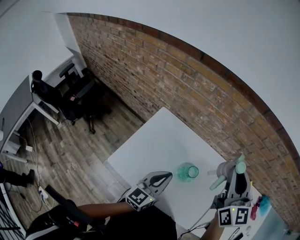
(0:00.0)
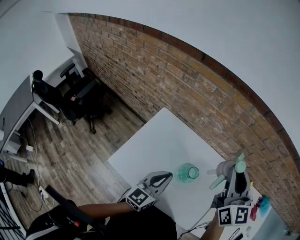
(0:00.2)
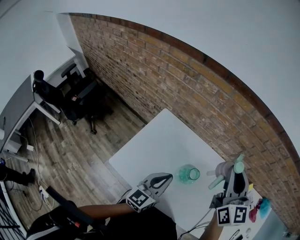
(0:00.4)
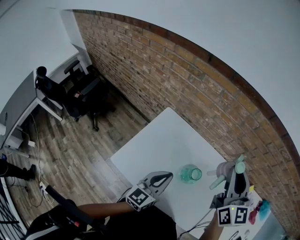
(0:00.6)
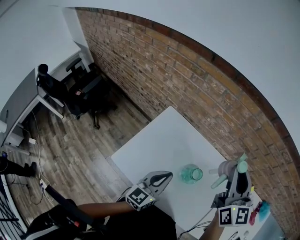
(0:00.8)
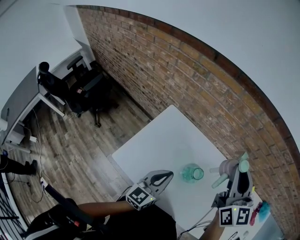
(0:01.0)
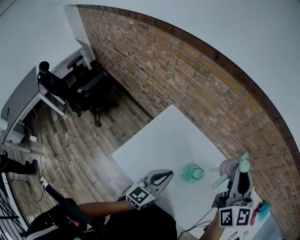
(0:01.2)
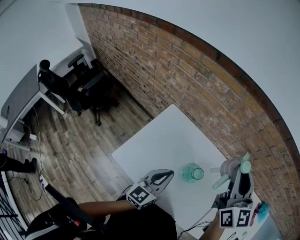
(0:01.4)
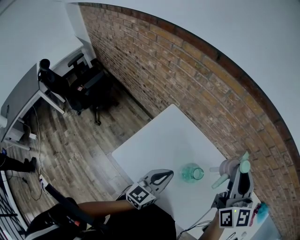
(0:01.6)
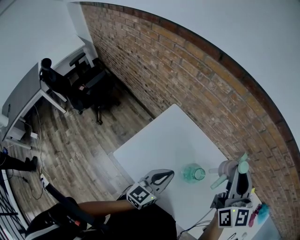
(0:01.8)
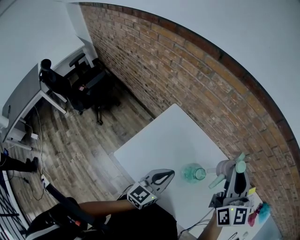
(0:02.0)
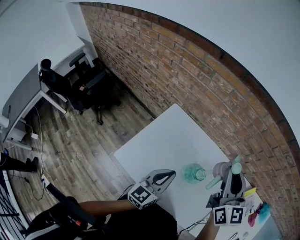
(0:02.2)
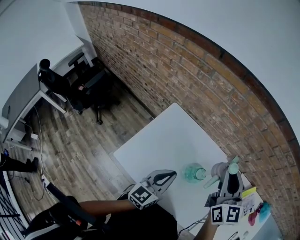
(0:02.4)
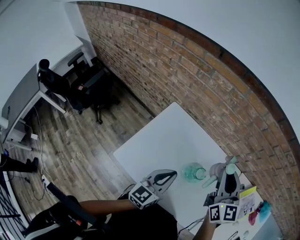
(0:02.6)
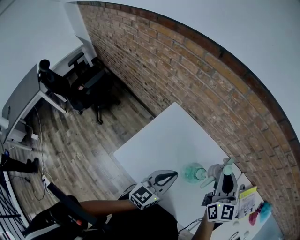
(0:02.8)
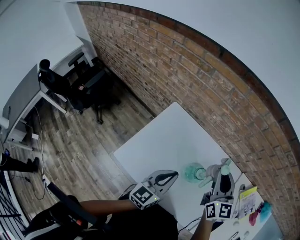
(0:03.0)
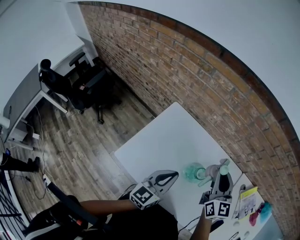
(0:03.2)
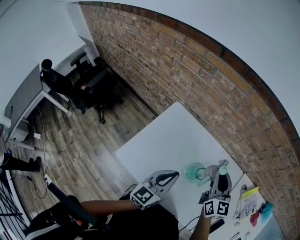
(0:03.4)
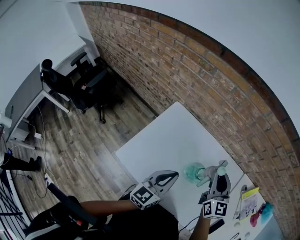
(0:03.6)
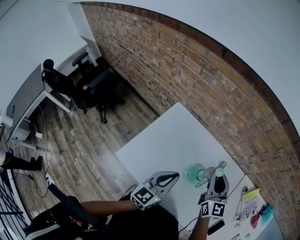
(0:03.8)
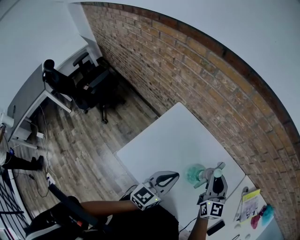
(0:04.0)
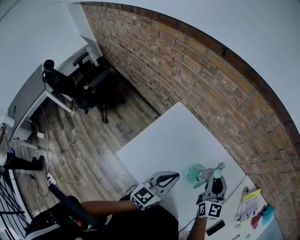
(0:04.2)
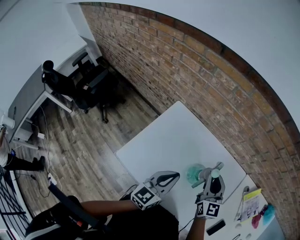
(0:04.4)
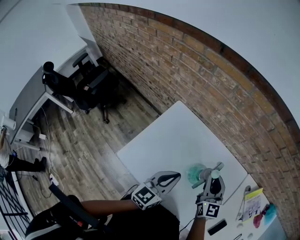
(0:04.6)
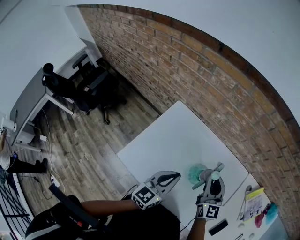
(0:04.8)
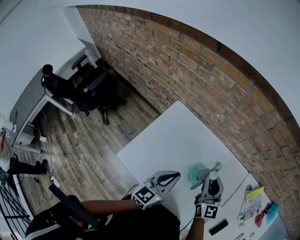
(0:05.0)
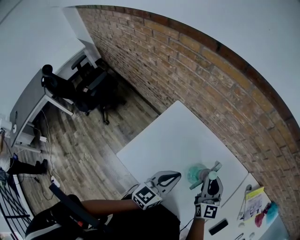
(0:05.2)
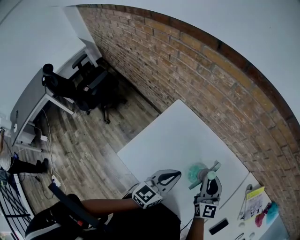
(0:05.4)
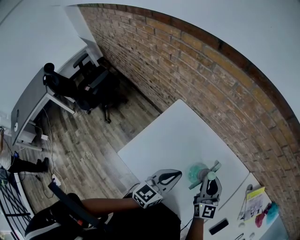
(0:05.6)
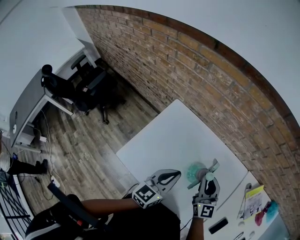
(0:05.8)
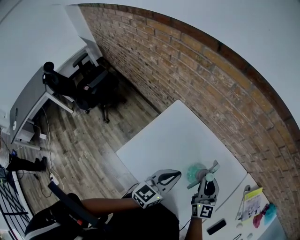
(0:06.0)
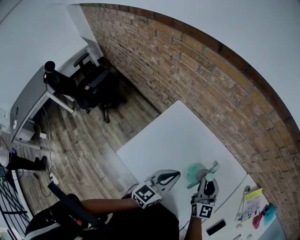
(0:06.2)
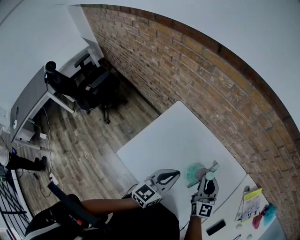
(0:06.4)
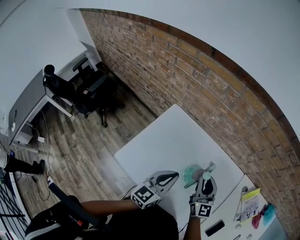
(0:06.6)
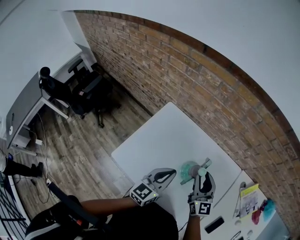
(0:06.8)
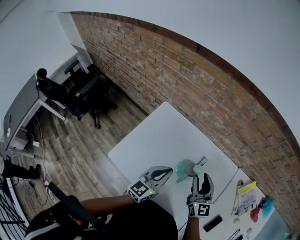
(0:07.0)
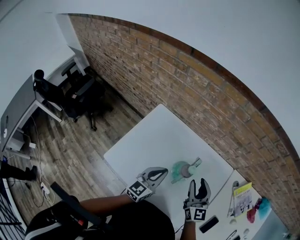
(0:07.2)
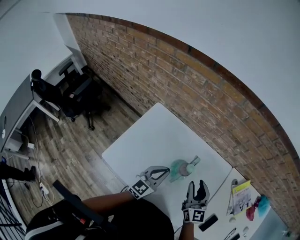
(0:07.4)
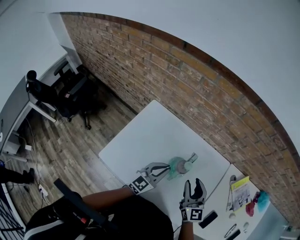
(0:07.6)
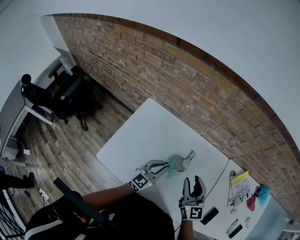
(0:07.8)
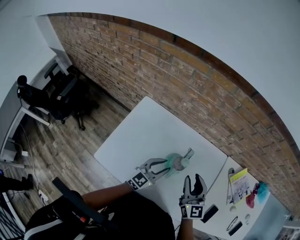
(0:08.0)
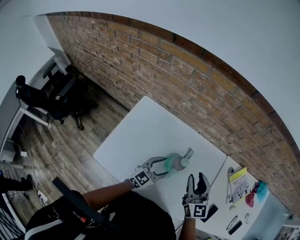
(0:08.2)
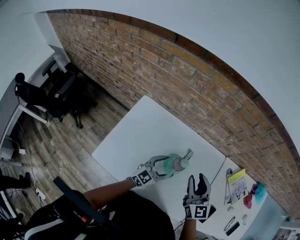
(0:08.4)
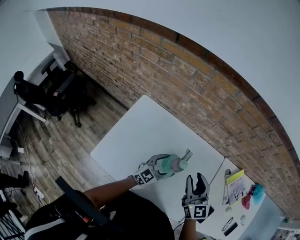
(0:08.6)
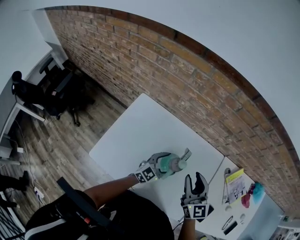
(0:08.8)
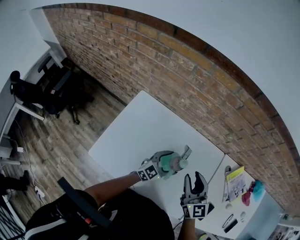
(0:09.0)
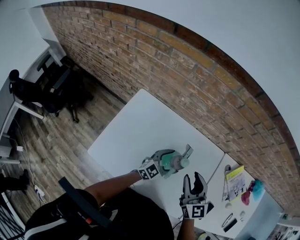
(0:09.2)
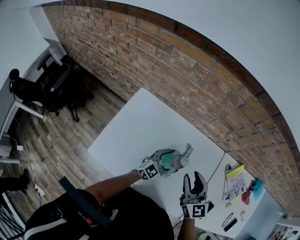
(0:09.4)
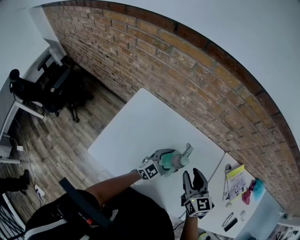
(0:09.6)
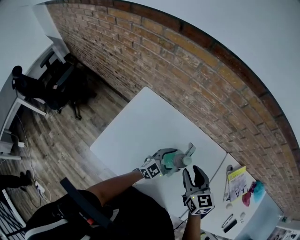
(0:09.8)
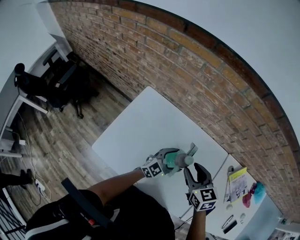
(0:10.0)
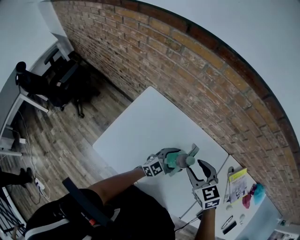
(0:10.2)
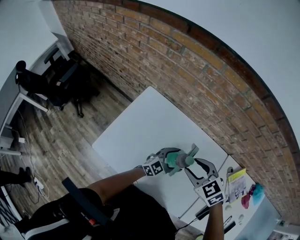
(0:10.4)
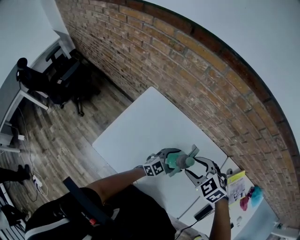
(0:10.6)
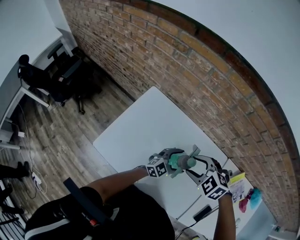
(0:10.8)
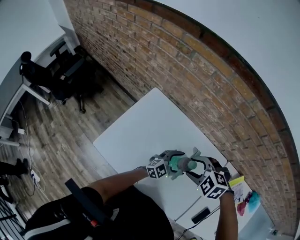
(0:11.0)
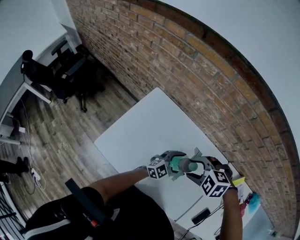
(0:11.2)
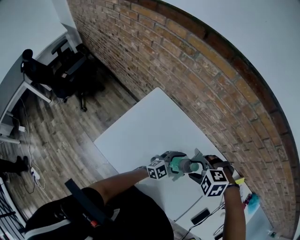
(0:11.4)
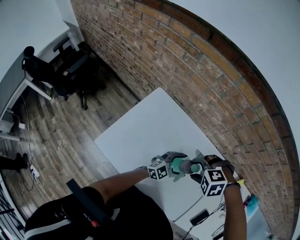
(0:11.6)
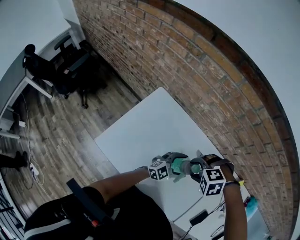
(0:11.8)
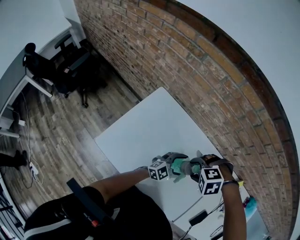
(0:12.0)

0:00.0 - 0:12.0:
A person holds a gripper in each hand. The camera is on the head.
0:00.0 - 0:01.6: There are only small adjustments of the grippers.
0:01.6 - 0:03.0: The right gripper travels downward by about 15 cm.
0:03.0 - 0:04.4: The right gripper shifts some 10 cm downward.
0:04.4 - 0:06.0: The grippers stay close to where they were, moving slightly.
0:06.0 - 0:07.6: The right gripper is displaced to the right by some 5 cm, while the left gripper shifts some 10 cm downward and to the right.
0:07.6 - 0:09.0: The left gripper heads downward and to the right, covering some 10 cm, and opens up.
0:09.0 - 0:10.4: The right gripper shifts by about 5 cm, and angles its fingers downward, by about 40 degrees.
0:10.4 - 0:12.0: The right gripper heads downward, covering approximately 5 cm, and points its fingers approximately 40 degrees further downward.

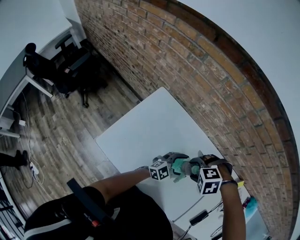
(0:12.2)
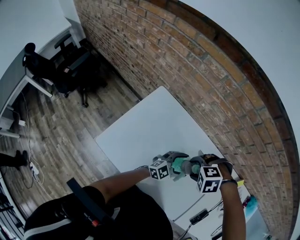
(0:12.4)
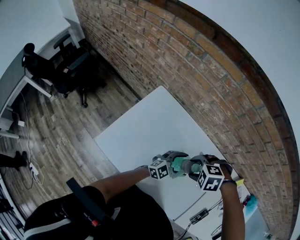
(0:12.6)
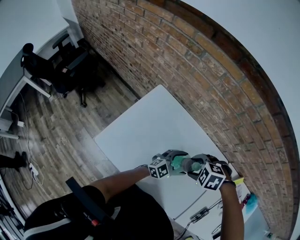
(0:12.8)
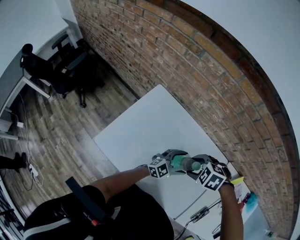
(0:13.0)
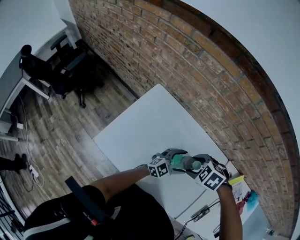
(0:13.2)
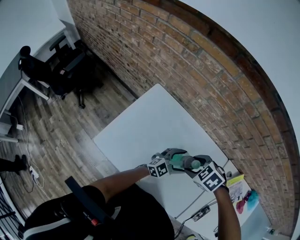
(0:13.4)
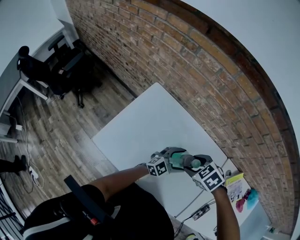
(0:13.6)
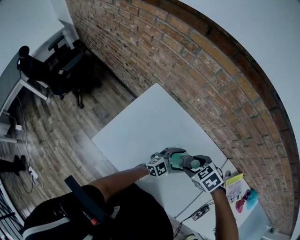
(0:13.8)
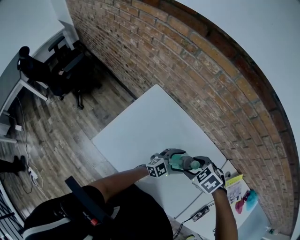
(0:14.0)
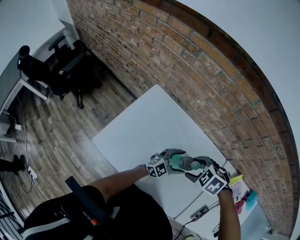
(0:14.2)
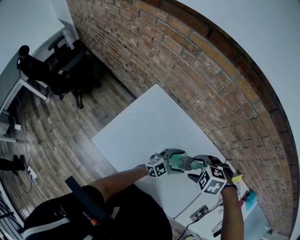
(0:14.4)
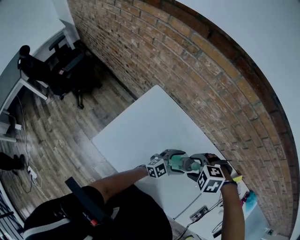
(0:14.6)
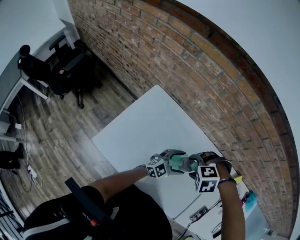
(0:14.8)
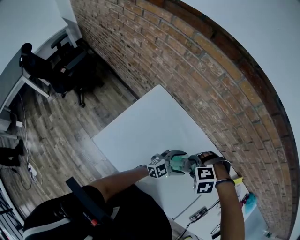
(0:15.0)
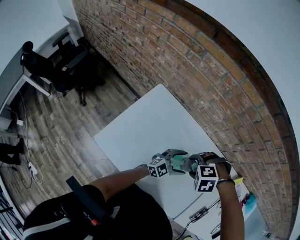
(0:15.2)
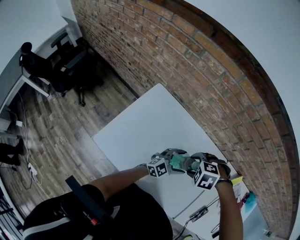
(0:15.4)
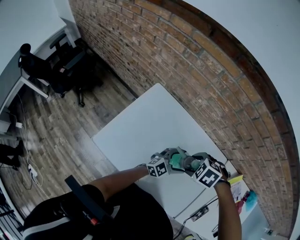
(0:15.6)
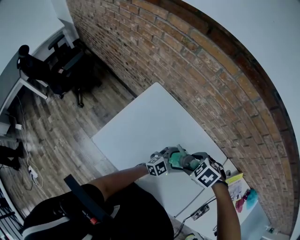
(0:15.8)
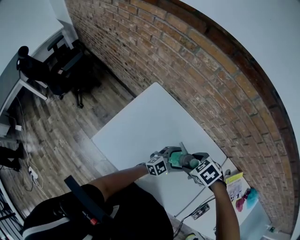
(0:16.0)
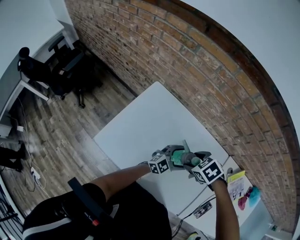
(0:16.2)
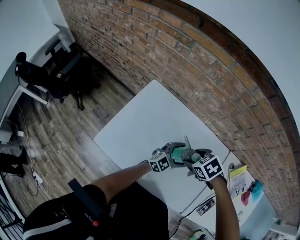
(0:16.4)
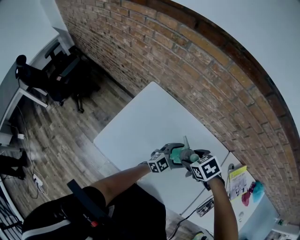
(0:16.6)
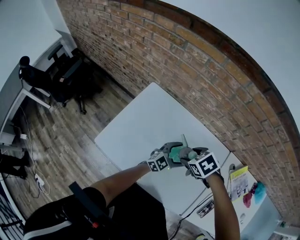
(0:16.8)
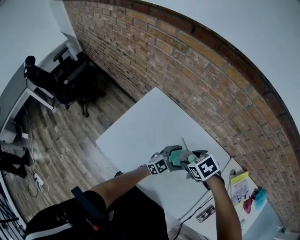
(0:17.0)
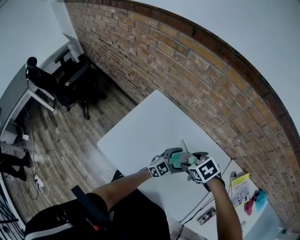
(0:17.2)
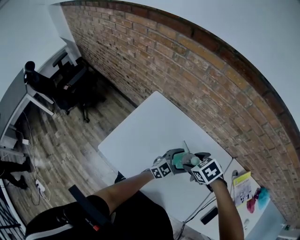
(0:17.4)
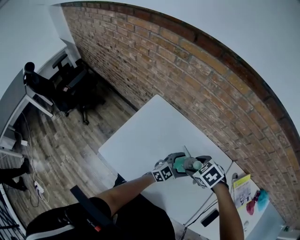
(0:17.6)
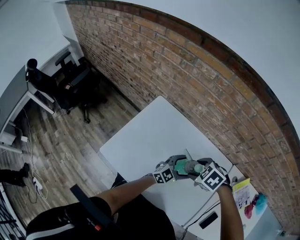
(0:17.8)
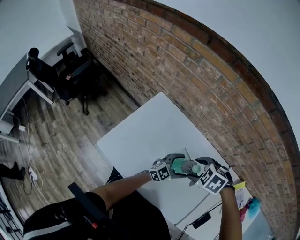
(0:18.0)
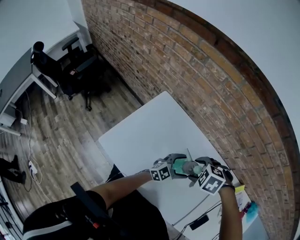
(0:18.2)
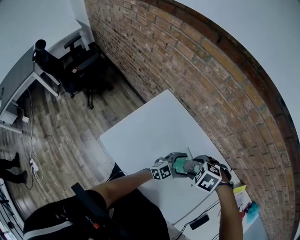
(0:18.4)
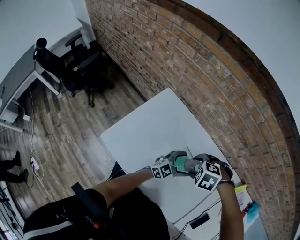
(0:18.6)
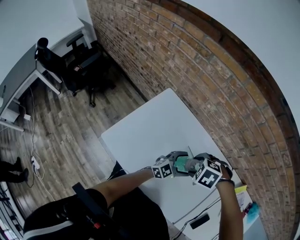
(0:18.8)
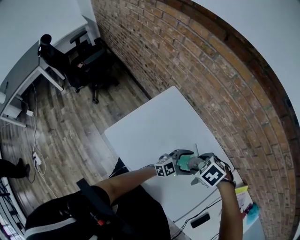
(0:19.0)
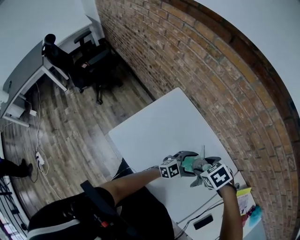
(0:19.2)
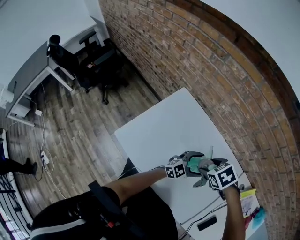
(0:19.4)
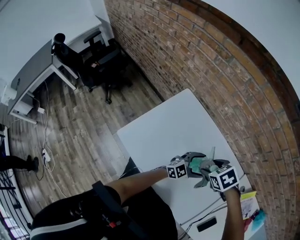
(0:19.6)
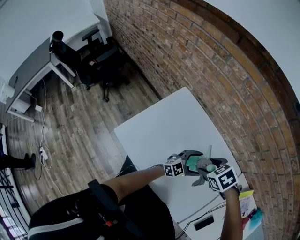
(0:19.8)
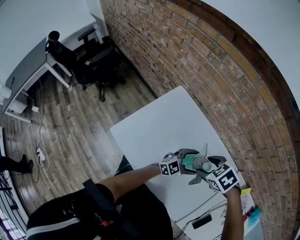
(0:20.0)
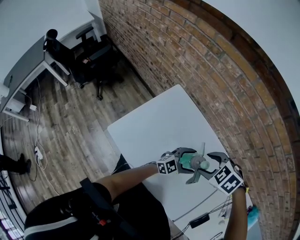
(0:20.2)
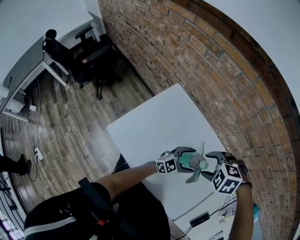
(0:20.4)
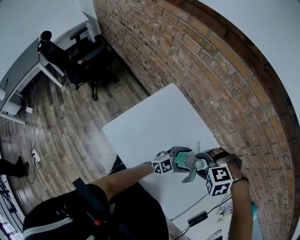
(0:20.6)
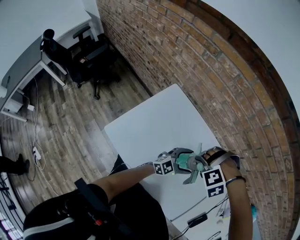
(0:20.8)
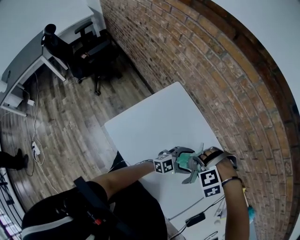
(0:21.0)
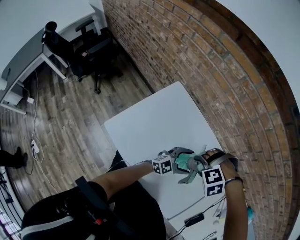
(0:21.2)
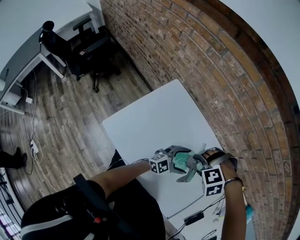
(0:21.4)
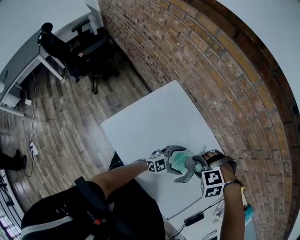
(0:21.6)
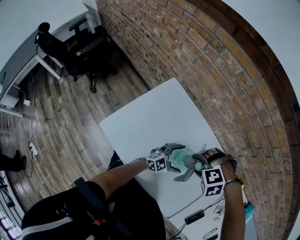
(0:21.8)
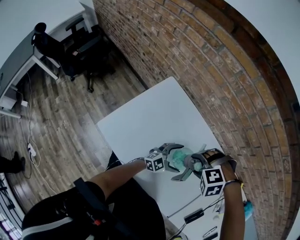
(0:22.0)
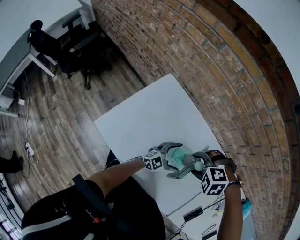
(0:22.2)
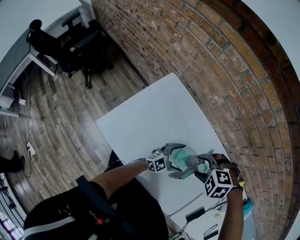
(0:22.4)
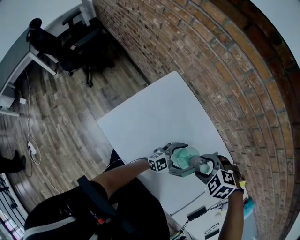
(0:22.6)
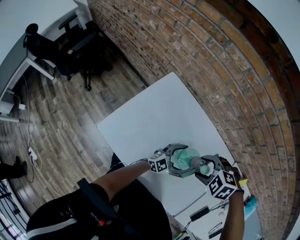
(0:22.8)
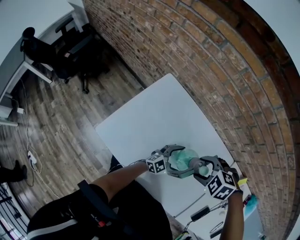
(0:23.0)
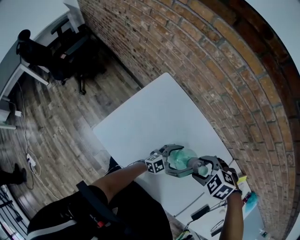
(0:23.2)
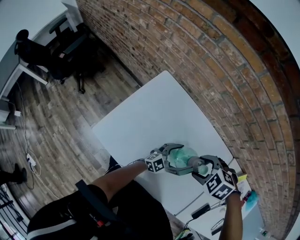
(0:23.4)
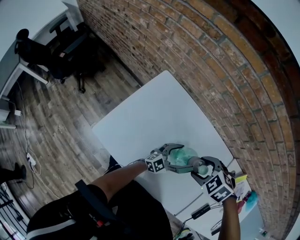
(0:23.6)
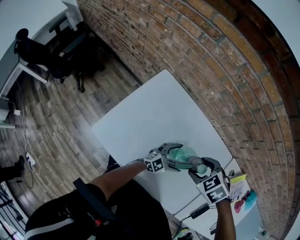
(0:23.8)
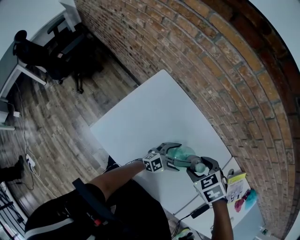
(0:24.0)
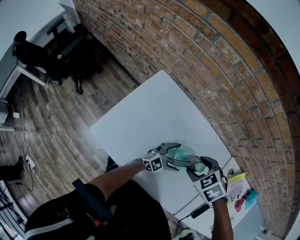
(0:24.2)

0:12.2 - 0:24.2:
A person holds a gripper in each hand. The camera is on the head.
0:12.2 - 0:13.8: The right gripper rotates around the line of its fingers by roughly 50 degrees, clockwise from behind.
0:13.8 - 0:15.2: The right gripper rotates around the line of its fingers by about 50 degrees, counterclockwise from behind.
0:15.2 - 0:16.6: The right gripper rolls clockwise, seen from behind, by roughly 60 degrees.
0:16.6 - 0:18.2: The right gripper rolls counterclockwise, seen from behind, by about 40 degrees.
0:18.2 - 0:19.8: The right gripper changes its angle by about 30 degrees.
0:19.8 - 0:21.2: The right gripper rolls counterclockwise, seen from behind, by about 80 degrees.
0:21.2 - 0:22.6: The left gripper heads downward, covering approximately 5 cm, while the right gripper swivels approximately 40 degrees.
0:22.6 - 0:24.2: The right gripper swivels about 40 degrees.
